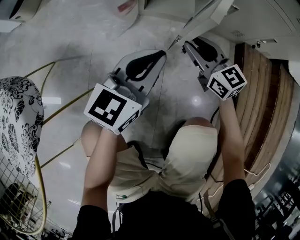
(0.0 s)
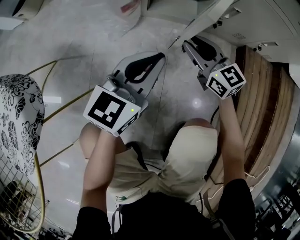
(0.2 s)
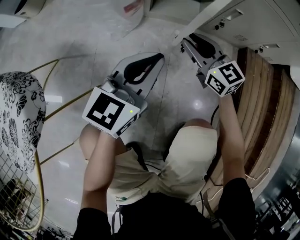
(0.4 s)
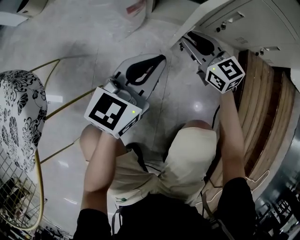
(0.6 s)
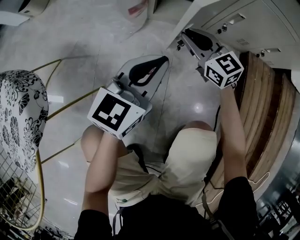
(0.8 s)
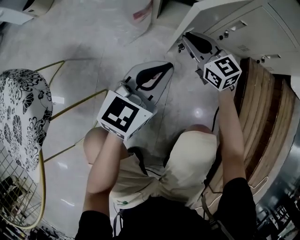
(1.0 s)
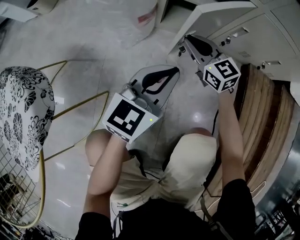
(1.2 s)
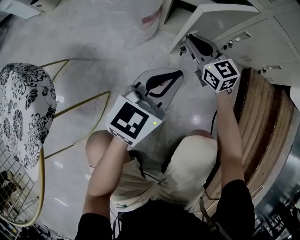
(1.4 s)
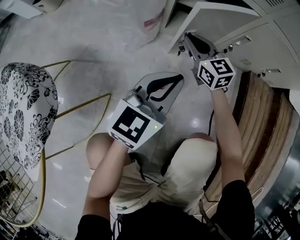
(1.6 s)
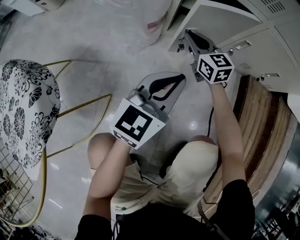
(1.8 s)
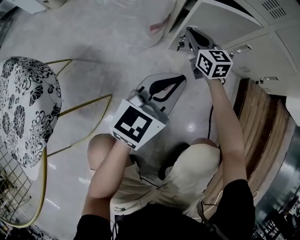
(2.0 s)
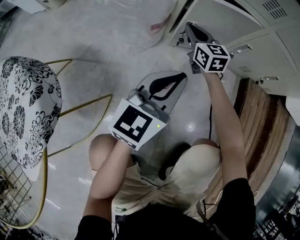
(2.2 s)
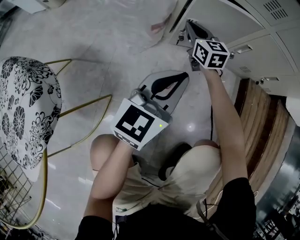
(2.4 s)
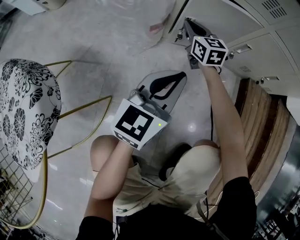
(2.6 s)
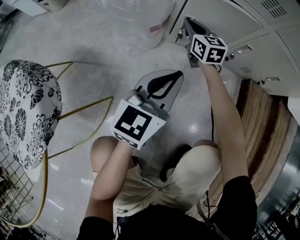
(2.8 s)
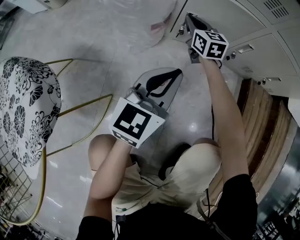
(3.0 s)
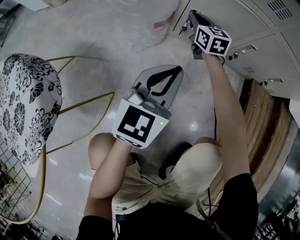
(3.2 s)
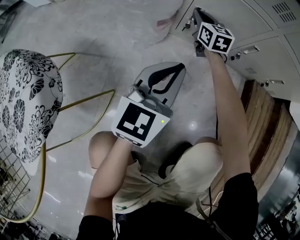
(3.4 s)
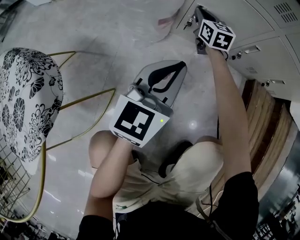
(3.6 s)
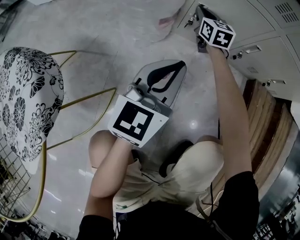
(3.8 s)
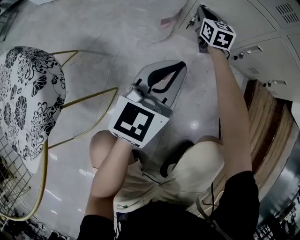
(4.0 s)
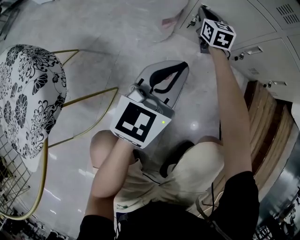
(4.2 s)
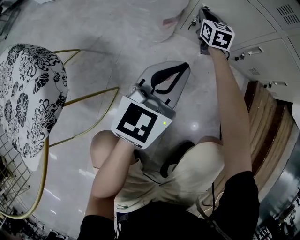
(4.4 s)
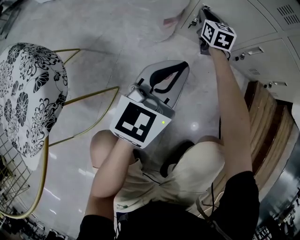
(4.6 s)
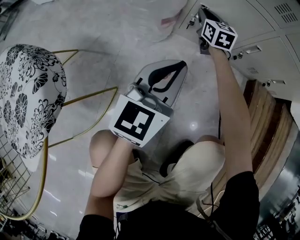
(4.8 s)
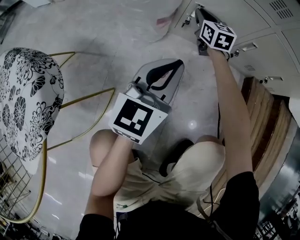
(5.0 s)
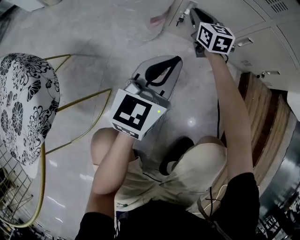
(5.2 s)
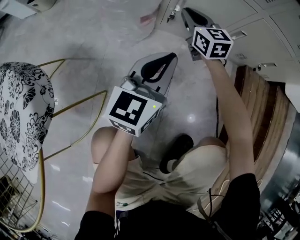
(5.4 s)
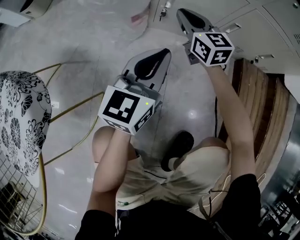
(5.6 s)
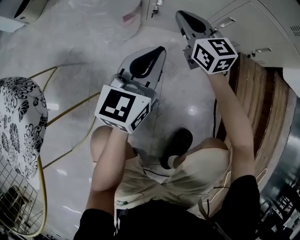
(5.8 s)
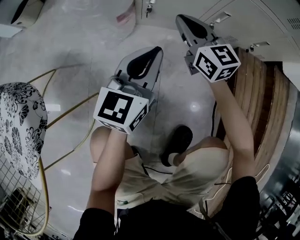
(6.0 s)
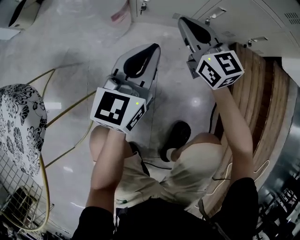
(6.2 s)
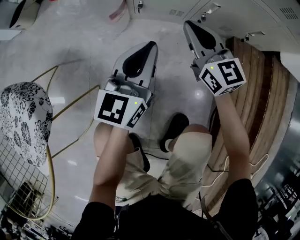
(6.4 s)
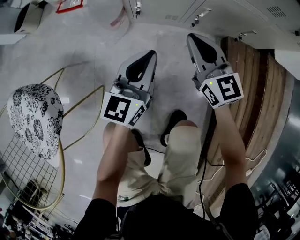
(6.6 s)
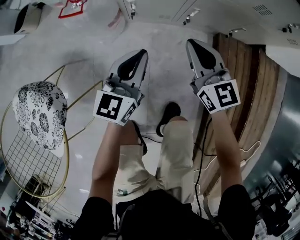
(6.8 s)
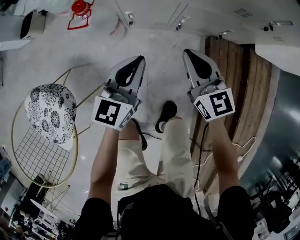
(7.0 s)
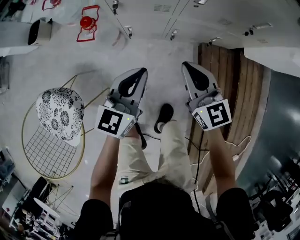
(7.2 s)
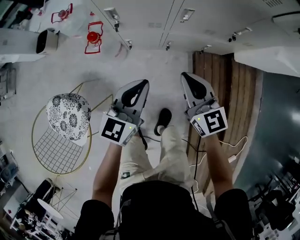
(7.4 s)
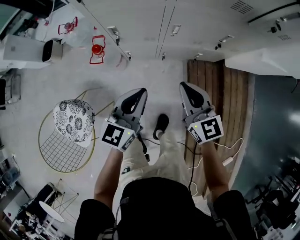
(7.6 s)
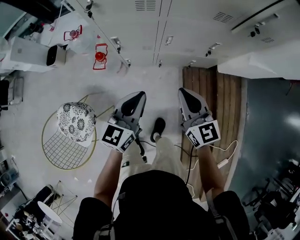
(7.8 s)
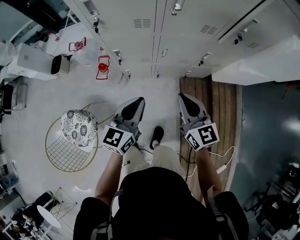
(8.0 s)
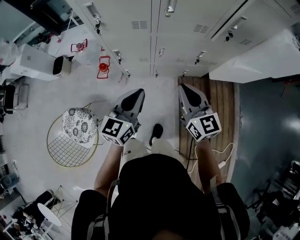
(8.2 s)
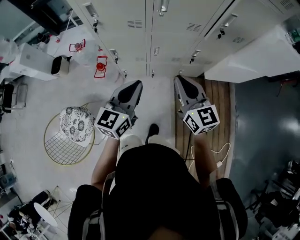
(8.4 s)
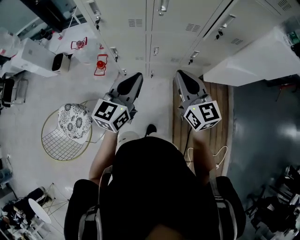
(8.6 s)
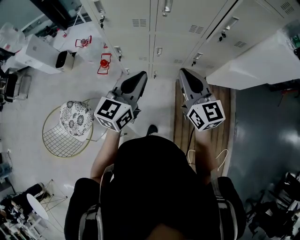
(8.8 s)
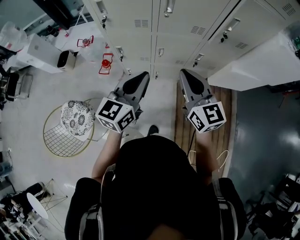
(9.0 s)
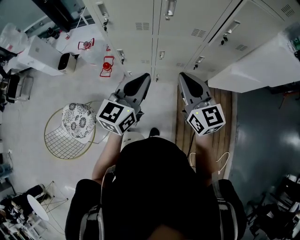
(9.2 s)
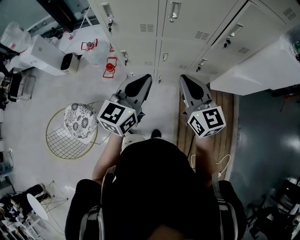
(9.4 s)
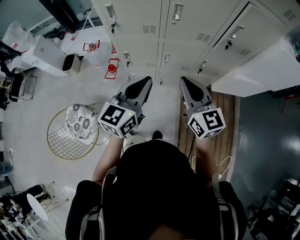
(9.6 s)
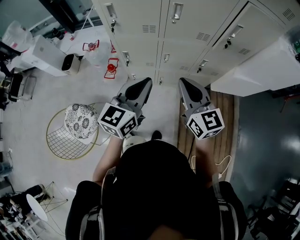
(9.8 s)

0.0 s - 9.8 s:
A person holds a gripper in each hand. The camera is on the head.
0.0 s - 1.4 s: The right gripper shifts approximately 10 cm forward and to the left.
1.4 s - 2.8 s: The right gripper is displaced forward by some 10 cm.
2.8 s - 4.2 s: There are only small adjustments of the grippers.
4.2 s - 5.6 s: The right gripper goes approximately 10 cm backward and upward.
5.6 s - 7.0 s: The right gripper moves upward, to the right and backward, roughly 40 cm, while the left gripper moves upward and to the right, roughly 25 cm.
7.0 s - 8.4 s: Both grippers travel together upward, some 50 cm.
8.4 s - 9.8 s: The left gripper shifts approximately 5 cm upward. The right gripper shifts by roughly 5 cm.

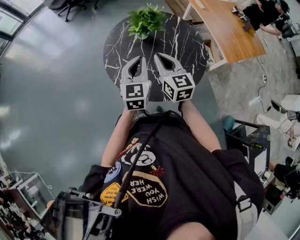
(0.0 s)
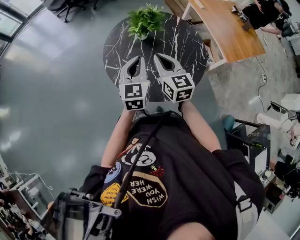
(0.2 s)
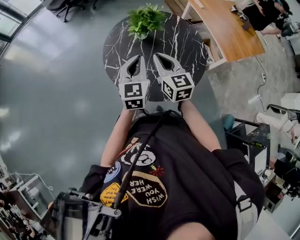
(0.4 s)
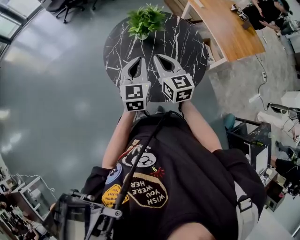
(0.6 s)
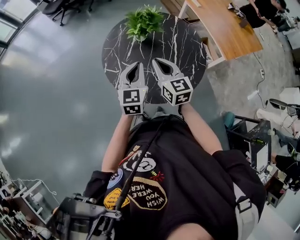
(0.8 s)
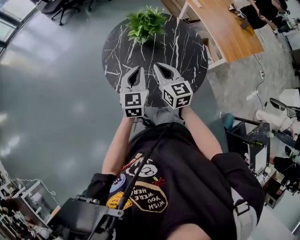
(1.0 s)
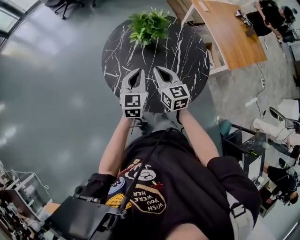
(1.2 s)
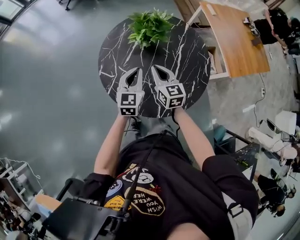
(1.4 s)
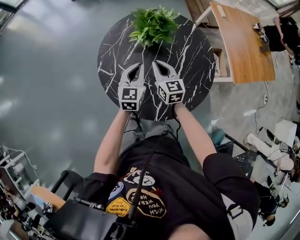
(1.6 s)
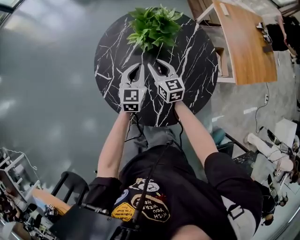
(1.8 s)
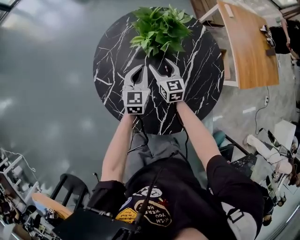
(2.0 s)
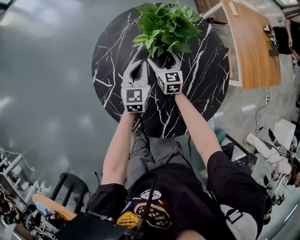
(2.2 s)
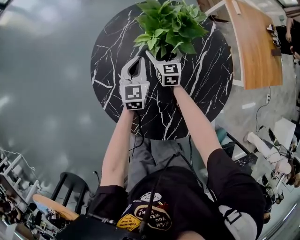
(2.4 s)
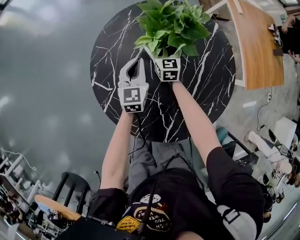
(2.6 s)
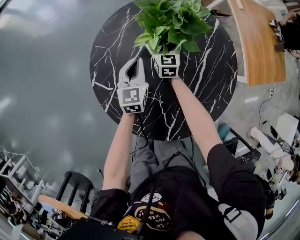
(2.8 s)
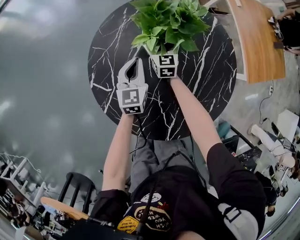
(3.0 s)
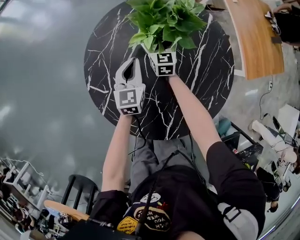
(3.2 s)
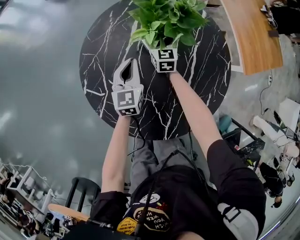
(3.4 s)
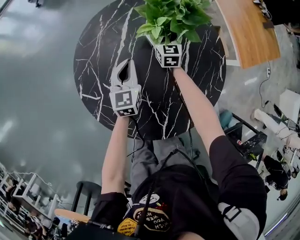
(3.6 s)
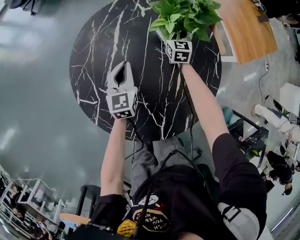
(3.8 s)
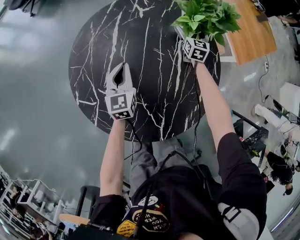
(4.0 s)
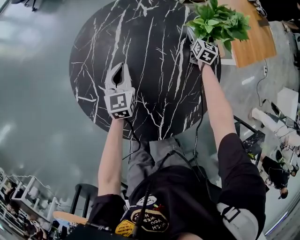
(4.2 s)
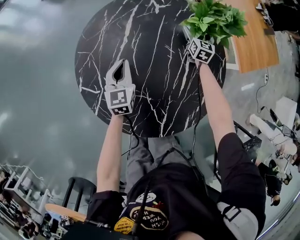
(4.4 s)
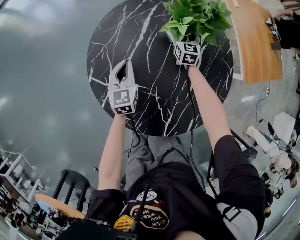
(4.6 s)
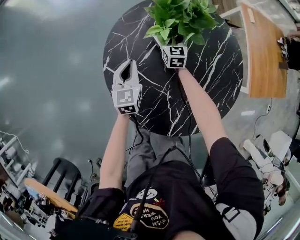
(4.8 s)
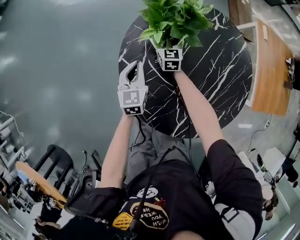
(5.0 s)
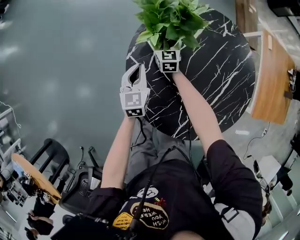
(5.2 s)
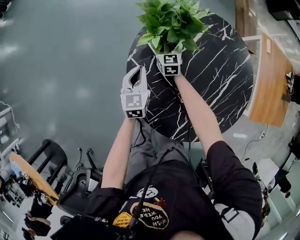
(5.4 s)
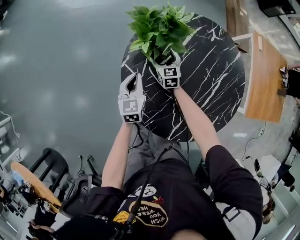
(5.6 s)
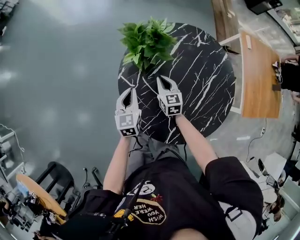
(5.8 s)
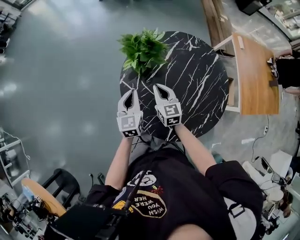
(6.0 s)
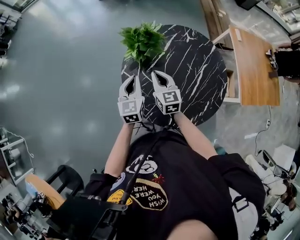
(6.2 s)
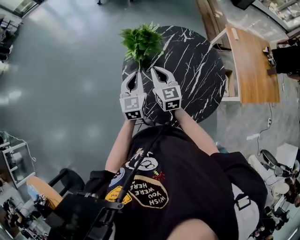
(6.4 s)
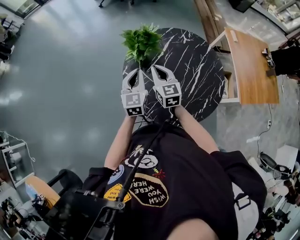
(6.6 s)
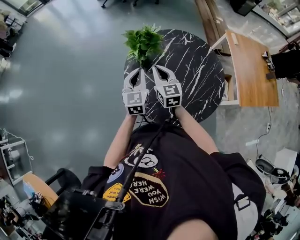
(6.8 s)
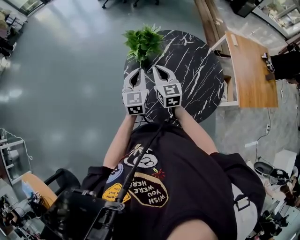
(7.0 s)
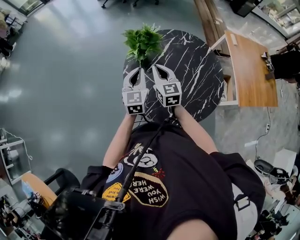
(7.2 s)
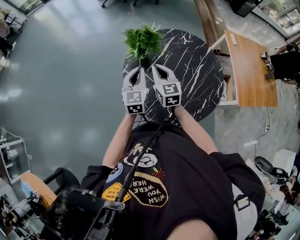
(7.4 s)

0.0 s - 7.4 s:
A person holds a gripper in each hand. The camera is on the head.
0.0 s - 1.4 s: Both grippers travel together downward and forward, approximately 15 cm.
1.4 s - 3.0 s: The left gripper goes roughly 25 cm downward and forward. Meanwhile the right gripper travels forward and downward by about 35 cm, and opens its fingers.
3.0 s - 4.4 s: The right gripper shifts roughly 30 cm to the right, and turns by about 20 degrees.
4.4 s - 6.0 s: The right gripper moves about 50 cm, rotates roughly 40 degrees, and closes its fingers. Meanwhile the left gripper shifts by about 25 cm.
6.0 s - 7.4 s: Both grippers move upward, some 10 cm.

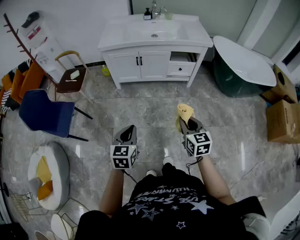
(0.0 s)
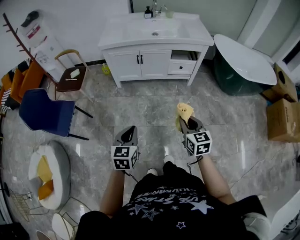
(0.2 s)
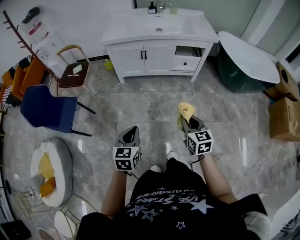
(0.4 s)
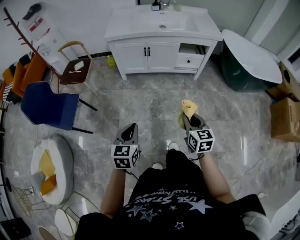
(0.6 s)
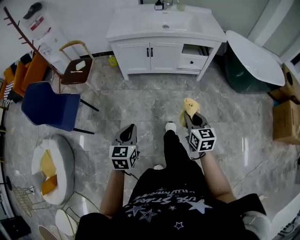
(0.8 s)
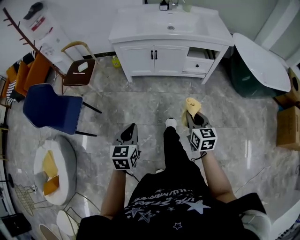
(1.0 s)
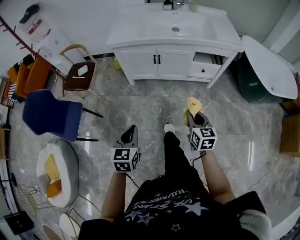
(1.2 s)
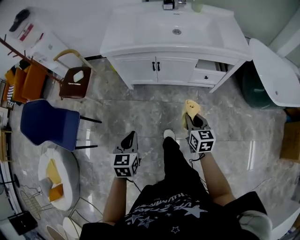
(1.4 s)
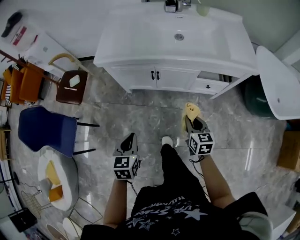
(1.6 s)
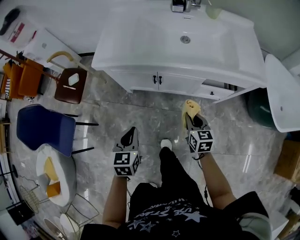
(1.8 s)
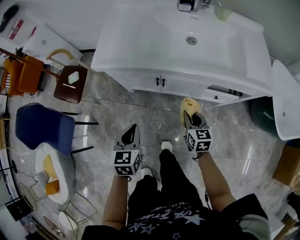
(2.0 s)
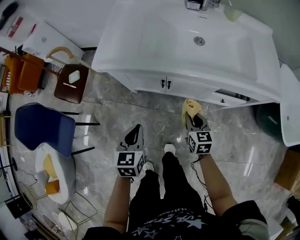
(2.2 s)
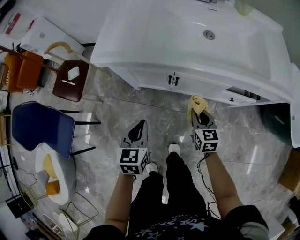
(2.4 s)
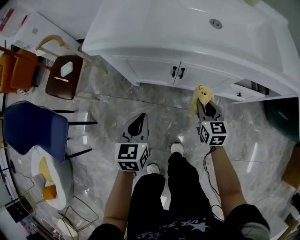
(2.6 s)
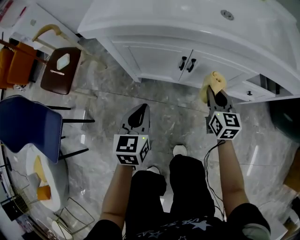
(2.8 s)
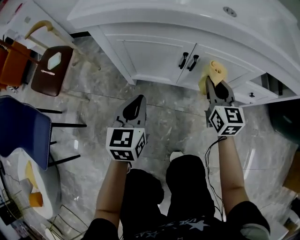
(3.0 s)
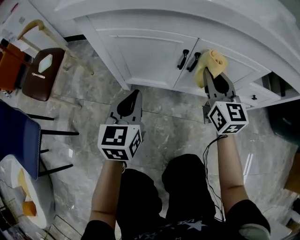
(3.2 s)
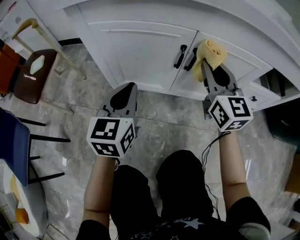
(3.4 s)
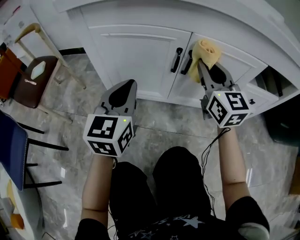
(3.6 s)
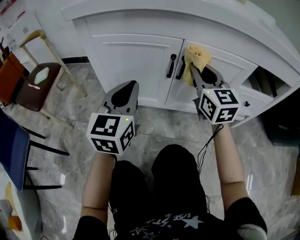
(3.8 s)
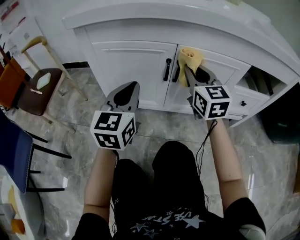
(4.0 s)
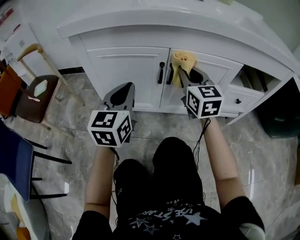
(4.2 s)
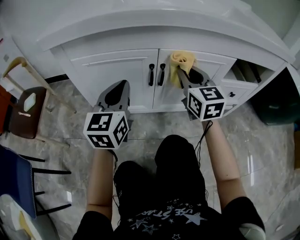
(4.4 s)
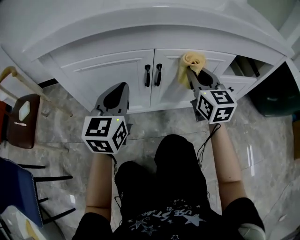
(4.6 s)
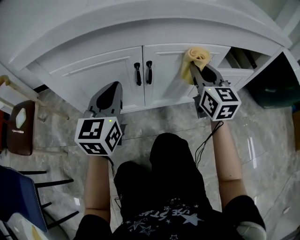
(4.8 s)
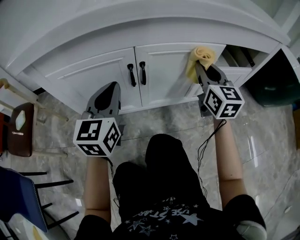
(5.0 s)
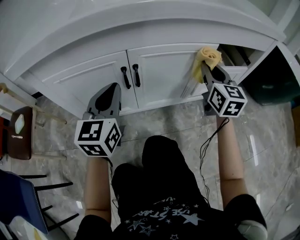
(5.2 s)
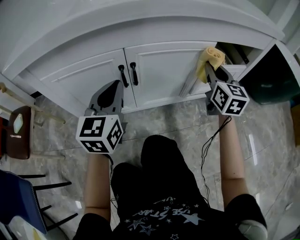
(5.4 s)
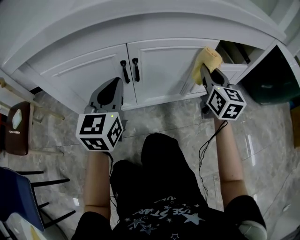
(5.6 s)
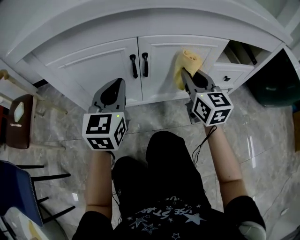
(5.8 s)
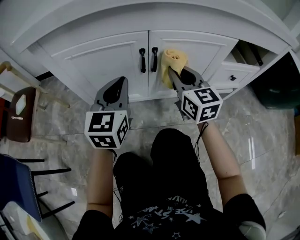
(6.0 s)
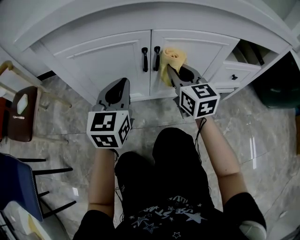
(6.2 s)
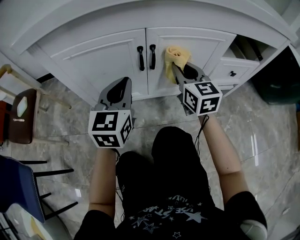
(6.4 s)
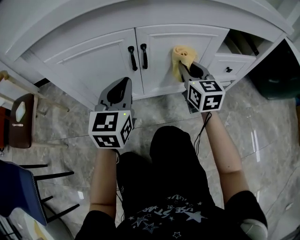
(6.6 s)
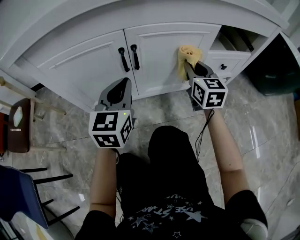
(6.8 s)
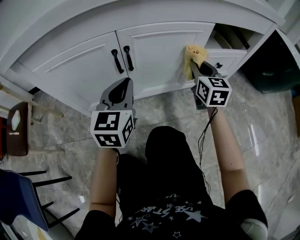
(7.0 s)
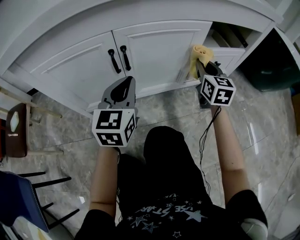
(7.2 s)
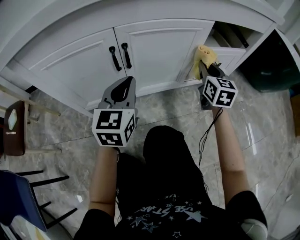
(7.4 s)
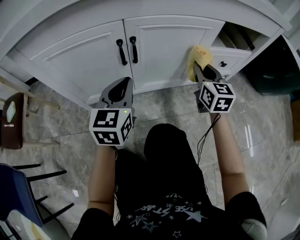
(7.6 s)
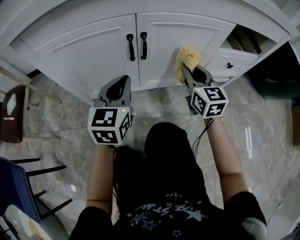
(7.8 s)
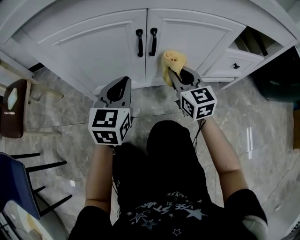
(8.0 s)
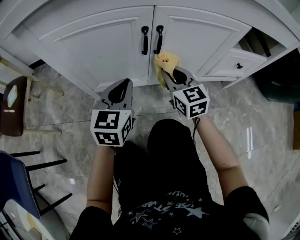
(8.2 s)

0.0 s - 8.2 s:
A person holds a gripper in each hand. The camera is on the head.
0.0 s - 1.6 s: The grippers both shift forward by approximately 40 cm.
1.6 s - 3.2 s: The right gripper heads forward and downward, covering about 35 cm, and swivels roughly 30 degrees. The left gripper moves downward and forward, some 40 cm.
3.2 s - 5.0 s: The right gripper is displaced to the right by some 15 cm, while the left gripper travels to the right and forward by approximately 10 cm, and rotates approximately 20 degrees.
5.0 s - 6.6 s: The left gripper is displaced downward by roughly 5 cm. Meanwhile the right gripper swings left and right, roughly 20 cm each way, with 2 reversals.
6.6 s - 8.2 s: The right gripper travels to the left and downward by some 15 cm. The left gripper shifts some 10 cm downward, and moves approximately 5 cm to the right and comes back.
